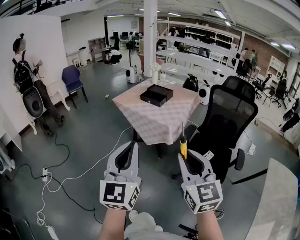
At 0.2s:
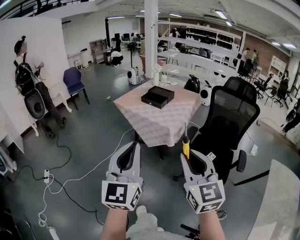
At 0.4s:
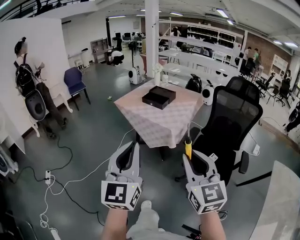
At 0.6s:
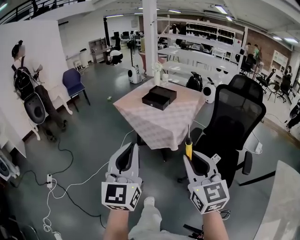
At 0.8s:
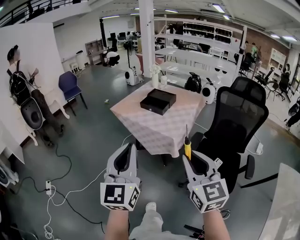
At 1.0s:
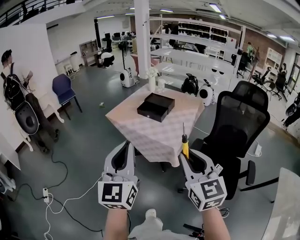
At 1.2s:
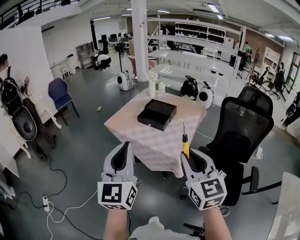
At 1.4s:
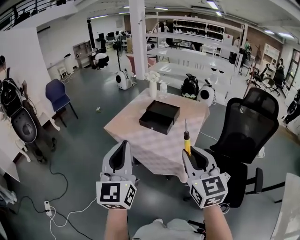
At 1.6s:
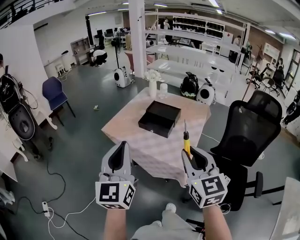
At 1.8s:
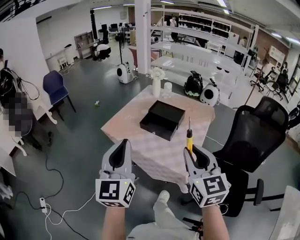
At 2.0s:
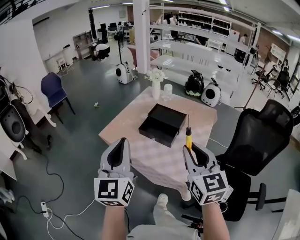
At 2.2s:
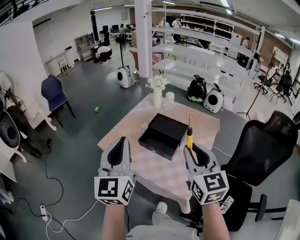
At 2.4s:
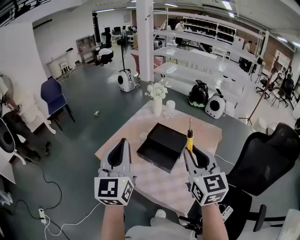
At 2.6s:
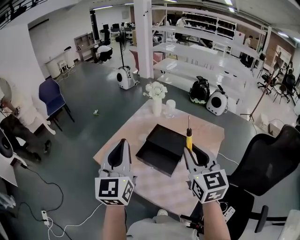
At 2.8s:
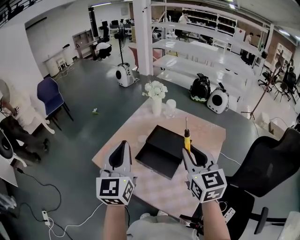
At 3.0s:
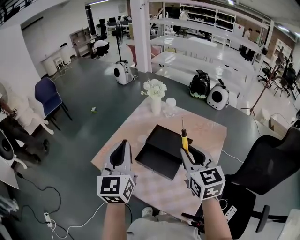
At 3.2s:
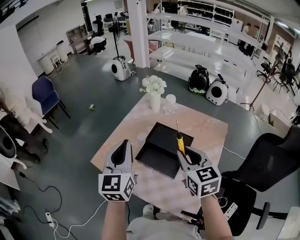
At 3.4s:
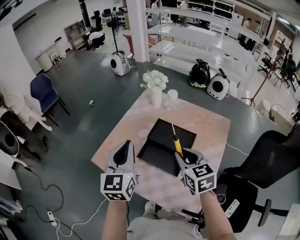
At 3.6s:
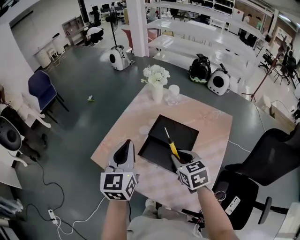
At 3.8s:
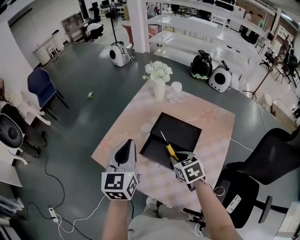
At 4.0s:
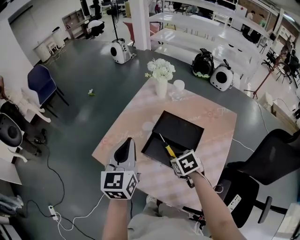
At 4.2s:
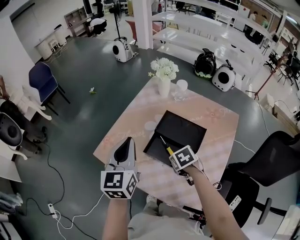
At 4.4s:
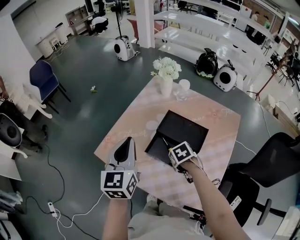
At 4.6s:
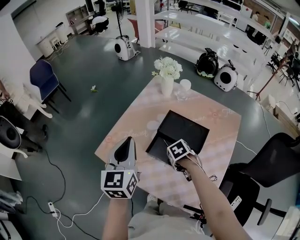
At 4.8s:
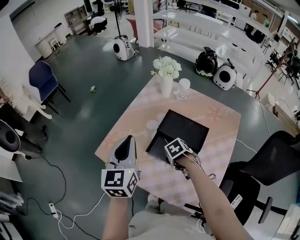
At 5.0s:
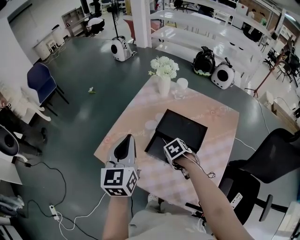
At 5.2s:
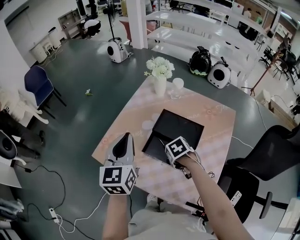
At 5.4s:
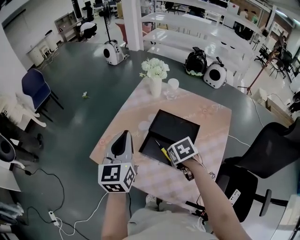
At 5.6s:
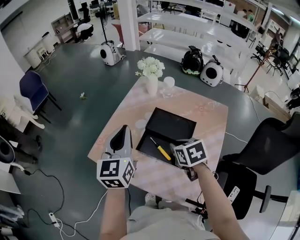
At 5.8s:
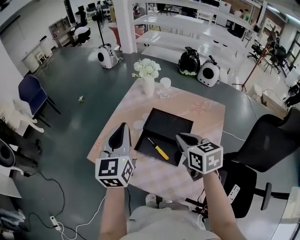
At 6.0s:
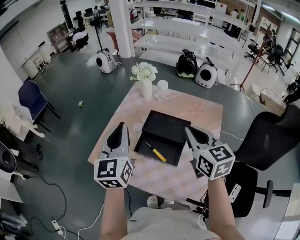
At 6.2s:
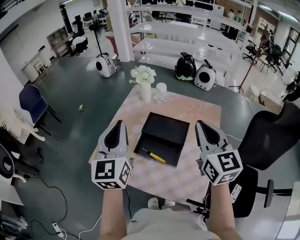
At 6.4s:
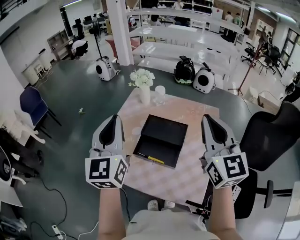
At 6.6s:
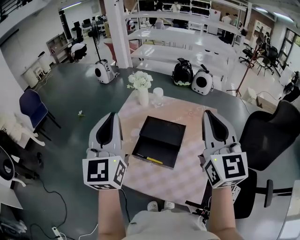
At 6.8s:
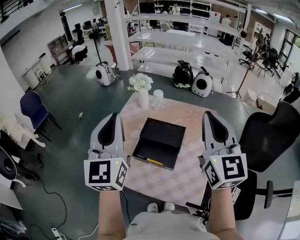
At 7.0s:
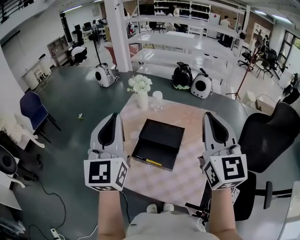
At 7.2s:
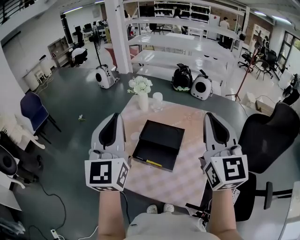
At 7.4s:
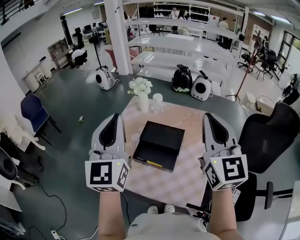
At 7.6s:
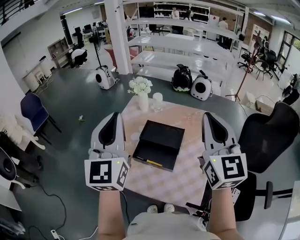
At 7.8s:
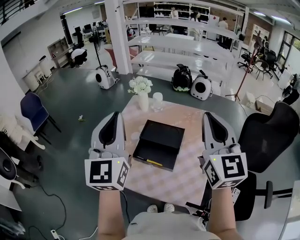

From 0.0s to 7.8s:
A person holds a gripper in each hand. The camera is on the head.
From 0.0s to 1.6s: Both grippers are carried forward, about 40 cm.
From 1.6s to 3.2s: Both grippers move forward, some 35 cm.
From 3.2s to 4.6s: The left gripper moves downward, roughly 5 cm. The right gripper is displaced downward by approximately 30 cm, and tilts its fingers about 60 degrees downward.
From 4.6s to 6.2s: The left gripper travels upward by about 10 cm. The right gripper goes approximately 35 cm upward, tips its fingers upward by about 80 degrees, and opens, then closes again.
From 6.2s to 7.8s: Both grippers move upward, roughly 10 cm.

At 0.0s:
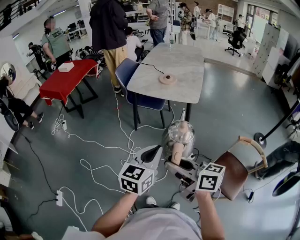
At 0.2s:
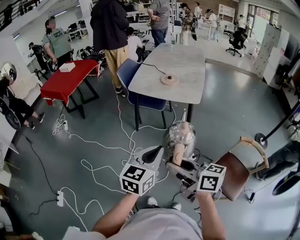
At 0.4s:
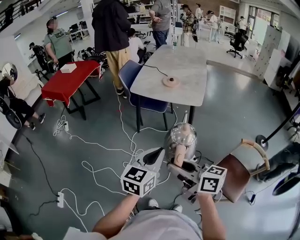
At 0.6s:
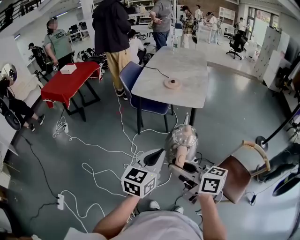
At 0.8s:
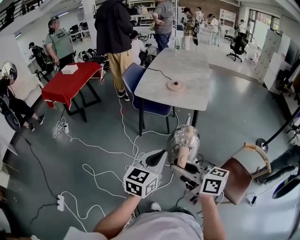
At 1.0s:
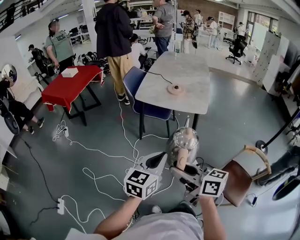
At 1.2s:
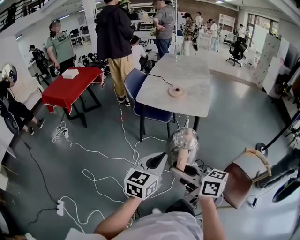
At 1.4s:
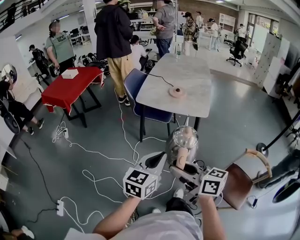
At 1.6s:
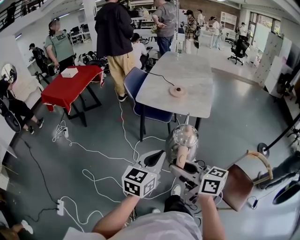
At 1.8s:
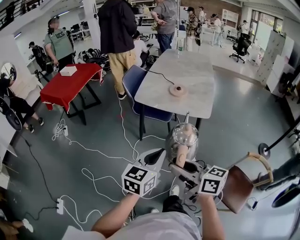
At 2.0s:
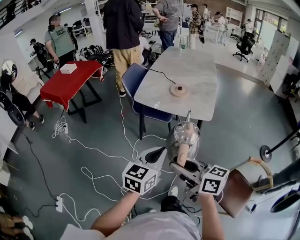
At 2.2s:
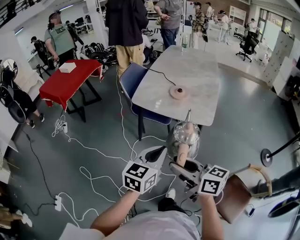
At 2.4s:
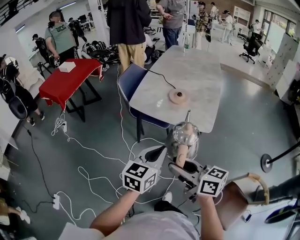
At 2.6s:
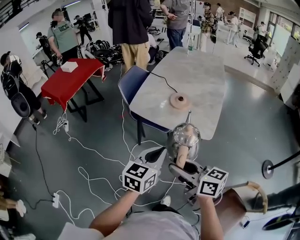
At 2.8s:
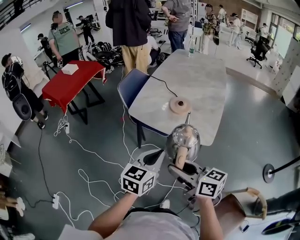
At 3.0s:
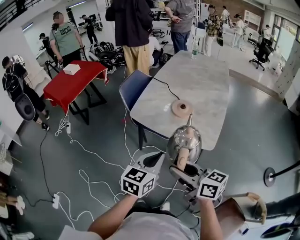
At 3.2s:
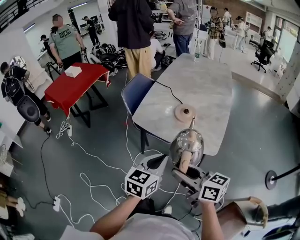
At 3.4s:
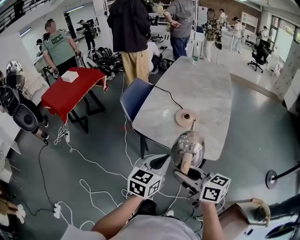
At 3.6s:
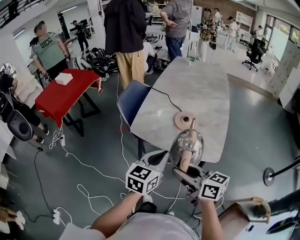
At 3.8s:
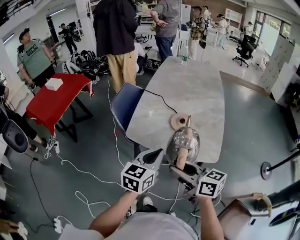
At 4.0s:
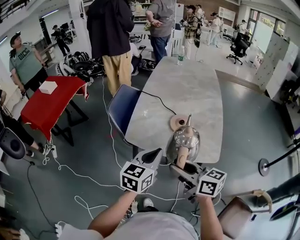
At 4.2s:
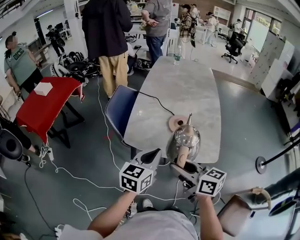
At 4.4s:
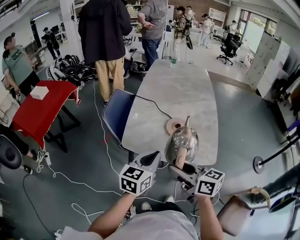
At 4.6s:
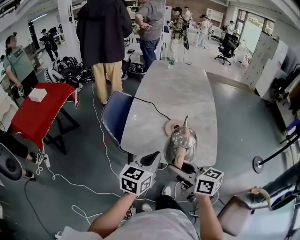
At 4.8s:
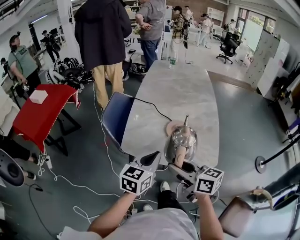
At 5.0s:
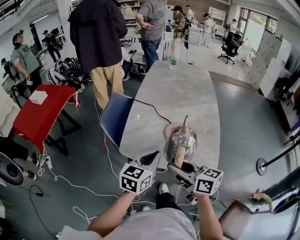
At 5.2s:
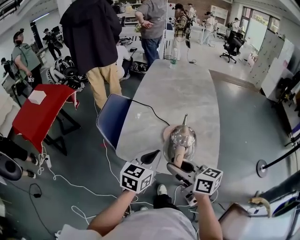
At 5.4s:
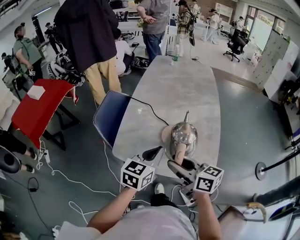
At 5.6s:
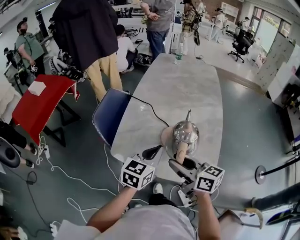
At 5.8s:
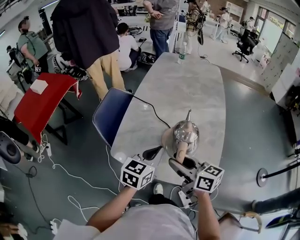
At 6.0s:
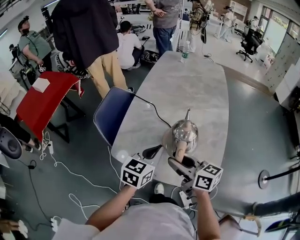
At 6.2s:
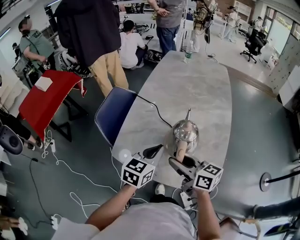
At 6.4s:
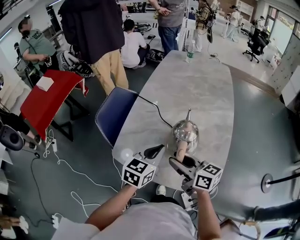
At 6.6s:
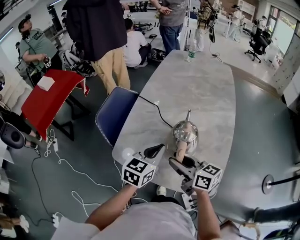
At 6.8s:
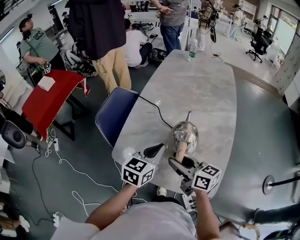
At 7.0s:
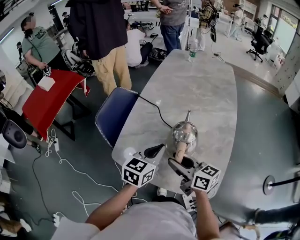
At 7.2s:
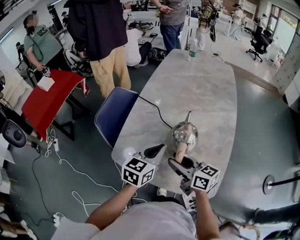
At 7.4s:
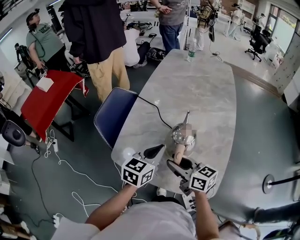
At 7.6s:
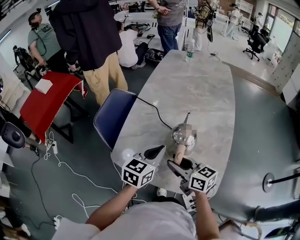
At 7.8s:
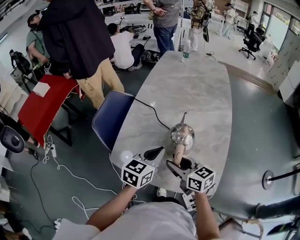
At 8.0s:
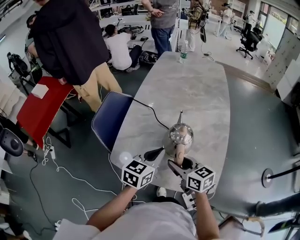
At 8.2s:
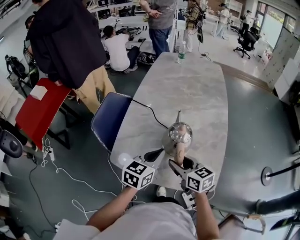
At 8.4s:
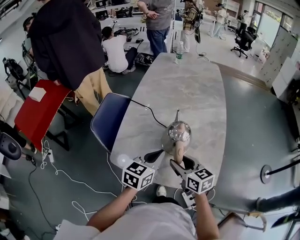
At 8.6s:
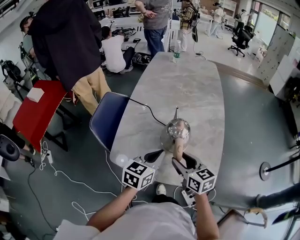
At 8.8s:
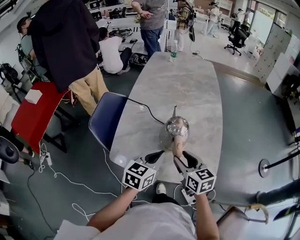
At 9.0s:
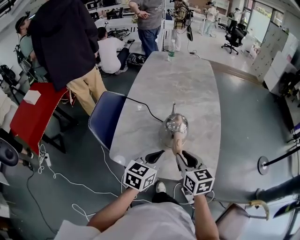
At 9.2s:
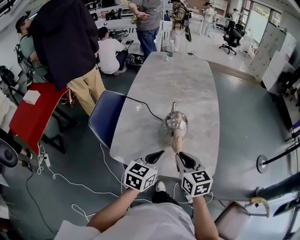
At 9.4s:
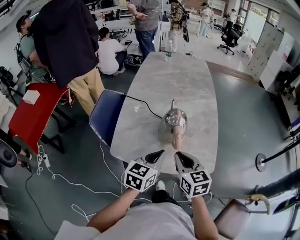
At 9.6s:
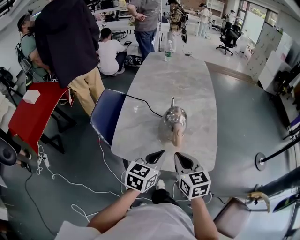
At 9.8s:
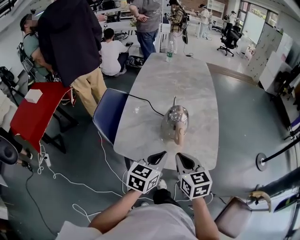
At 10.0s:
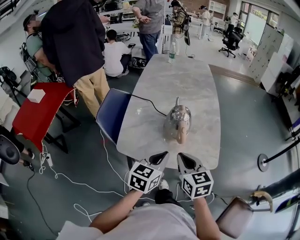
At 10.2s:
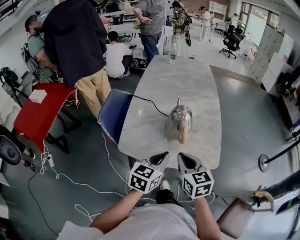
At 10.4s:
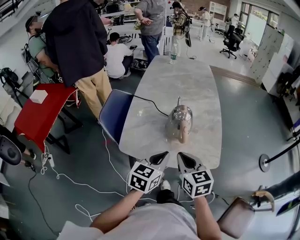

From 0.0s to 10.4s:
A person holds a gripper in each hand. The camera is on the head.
From 0.0s to 1.4s: Both grippers travel together forward and to the left, some 10 cm.
From 1.4s to 3.0s: Both grippers move forward and to the right, approximately 30 cm.
From 3.0s to 4.4s: The right gripper goes about 20 cm forward and to the left, while the left gripper moves forward, about 20 cm.
From 4.4s to 6.0s: The grippers both shift forward and to the right by about 20 cm.
From 6.0s to 7.4s: The right gripper moves downward, roughly 5 cm.
From 7.4s to 9.0s: The right gripper moves about 5 cm, and changes its angle by approximately 40 degrees. Meanwhile the left gripper heads backward, covering about 10 cm.
From 9.0s to 10.4s: The grippers both shift backward by approximately 10 cm. The right gripper closes.

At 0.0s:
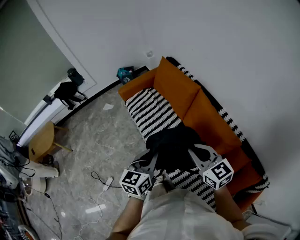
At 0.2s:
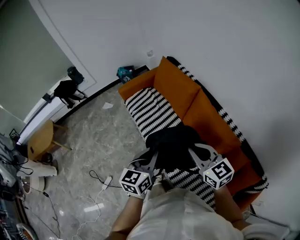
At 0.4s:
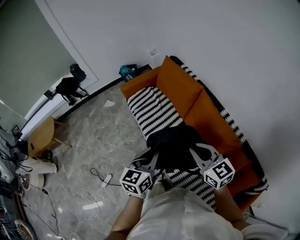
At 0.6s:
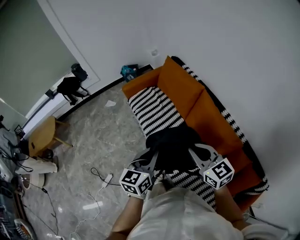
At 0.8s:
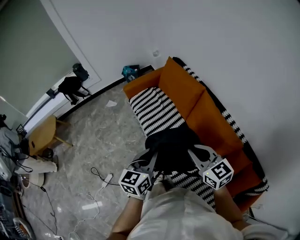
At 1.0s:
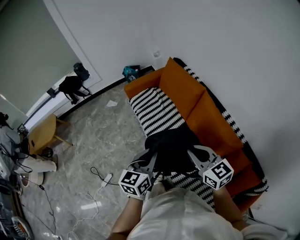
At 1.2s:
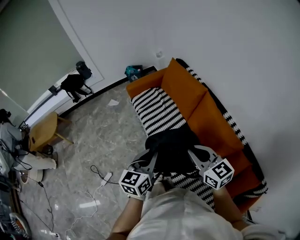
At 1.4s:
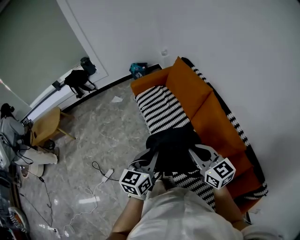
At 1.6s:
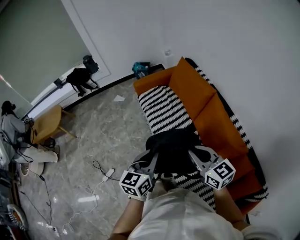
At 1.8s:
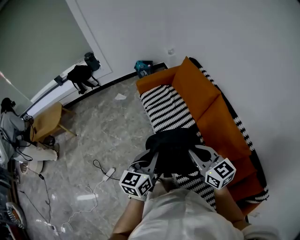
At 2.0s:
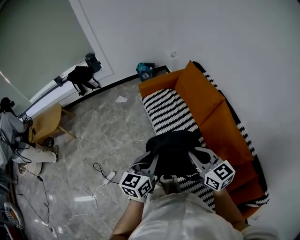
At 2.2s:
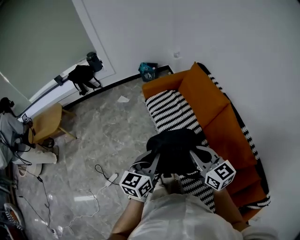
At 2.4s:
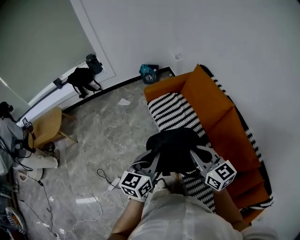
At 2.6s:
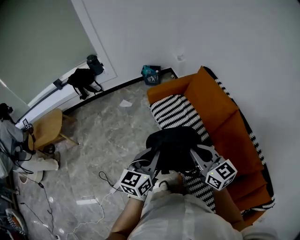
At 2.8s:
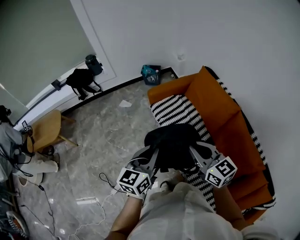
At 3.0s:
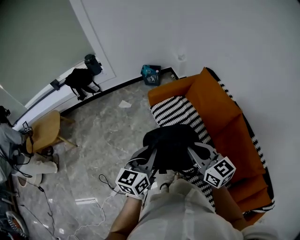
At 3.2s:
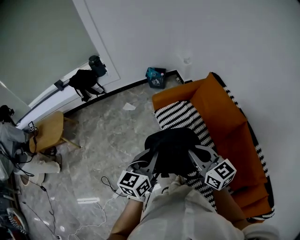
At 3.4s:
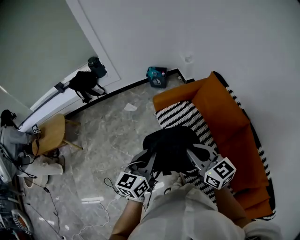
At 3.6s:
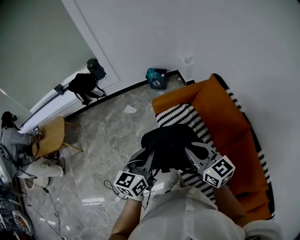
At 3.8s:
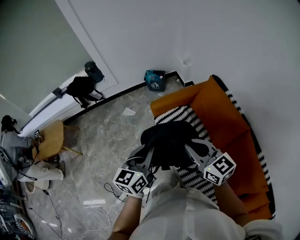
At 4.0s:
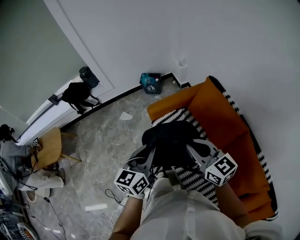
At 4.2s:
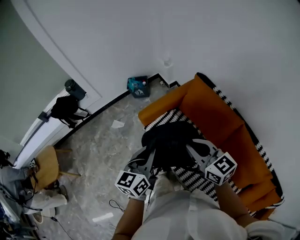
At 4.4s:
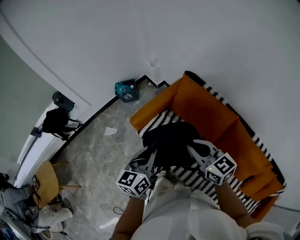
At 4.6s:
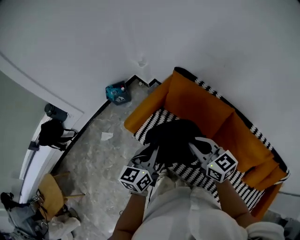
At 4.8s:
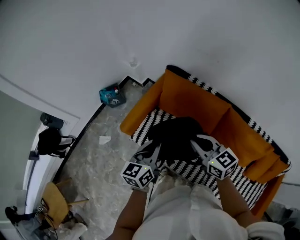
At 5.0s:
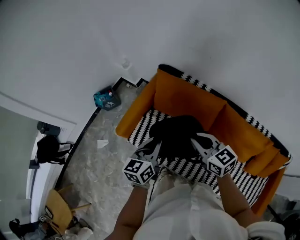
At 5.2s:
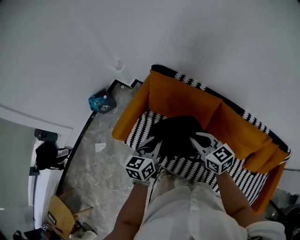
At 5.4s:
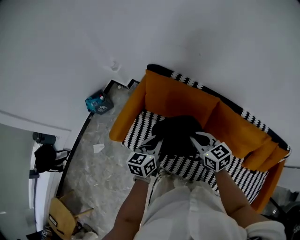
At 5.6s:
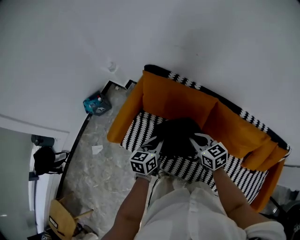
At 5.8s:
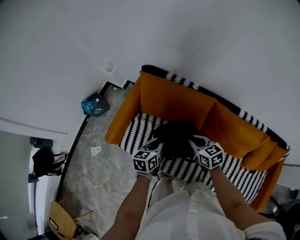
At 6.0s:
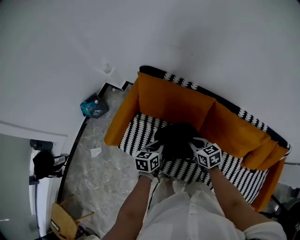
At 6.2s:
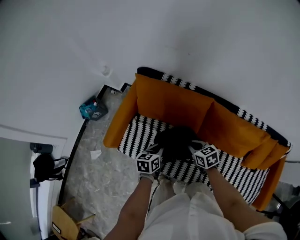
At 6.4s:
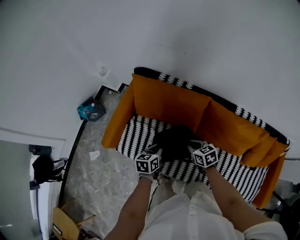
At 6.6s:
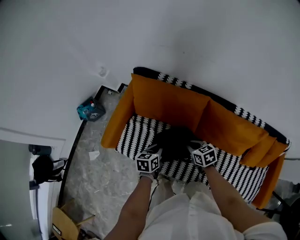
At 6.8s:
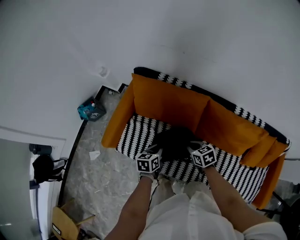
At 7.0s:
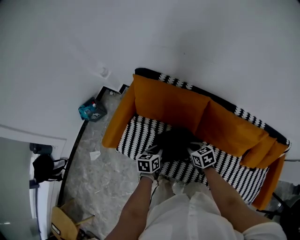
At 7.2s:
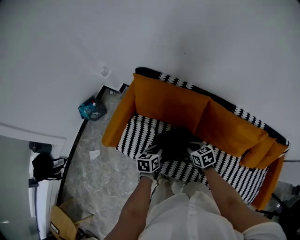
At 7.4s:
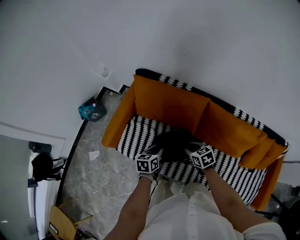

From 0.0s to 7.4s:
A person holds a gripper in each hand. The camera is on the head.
From 0.0s to 1.4s: The two grippers go some 5 cm to the left.
From 1.4s to 3.0s: Both grippers travel together forward and to the left, about 30 cm.
From 3.0s to 4.4s: The two grippers go some 25 cm forward.
From 4.4s to 6.0s: Both grippers travel together downward, roughly 25 cm. The left gripper rotates approximately 40 degrees, while the right gripper rotates about 40 degrees.
From 6.0s to 7.4s: The right gripper ends up some 5 cm from where it was, and opens.
